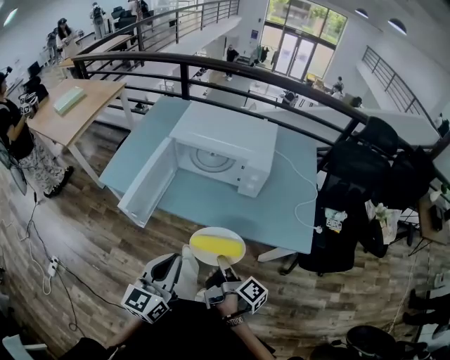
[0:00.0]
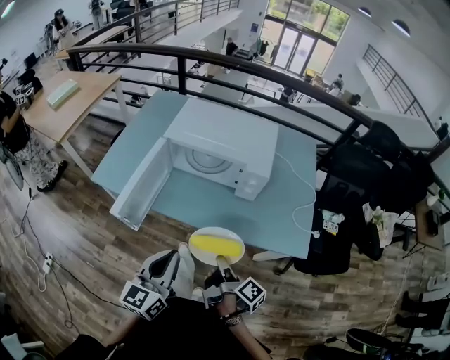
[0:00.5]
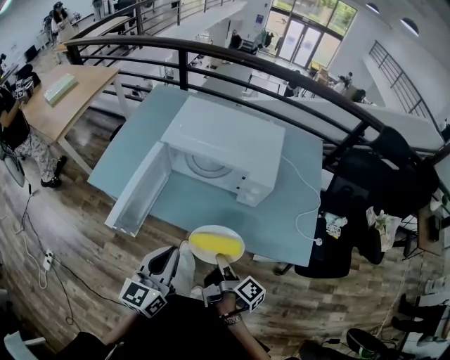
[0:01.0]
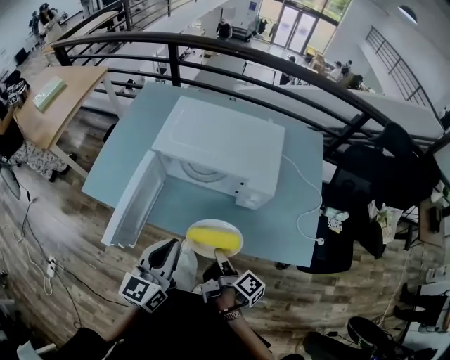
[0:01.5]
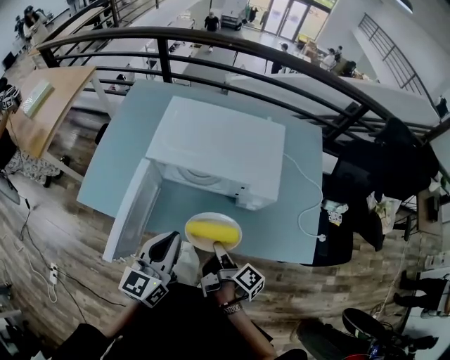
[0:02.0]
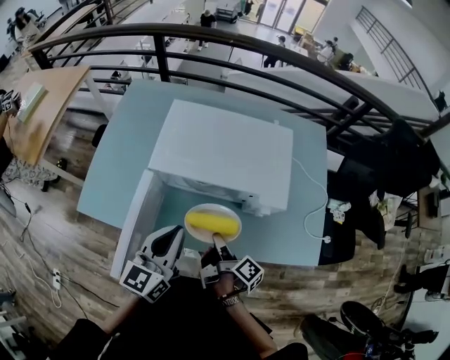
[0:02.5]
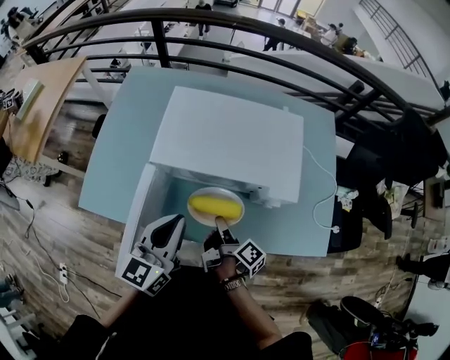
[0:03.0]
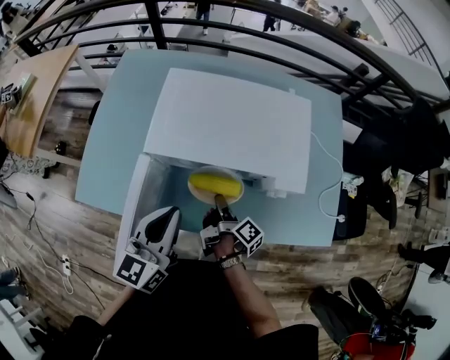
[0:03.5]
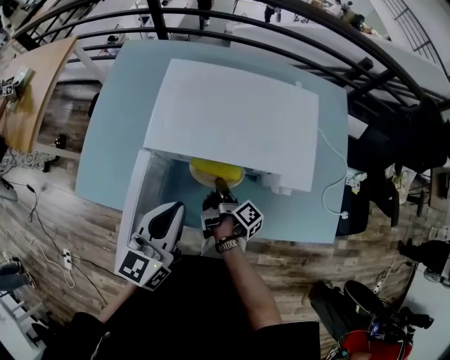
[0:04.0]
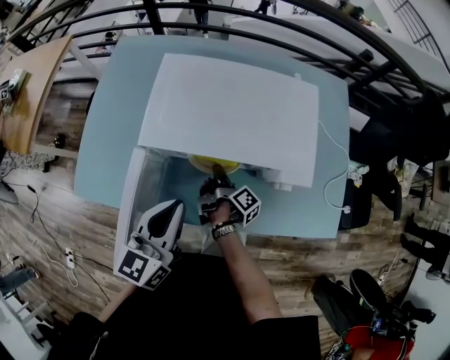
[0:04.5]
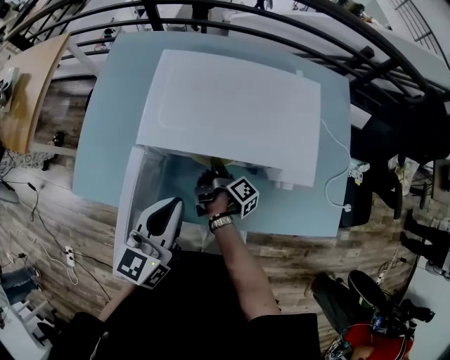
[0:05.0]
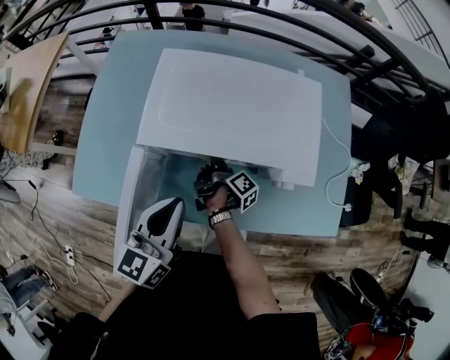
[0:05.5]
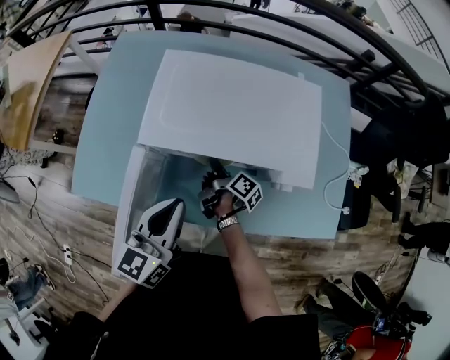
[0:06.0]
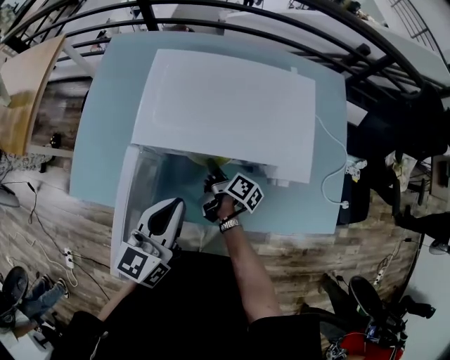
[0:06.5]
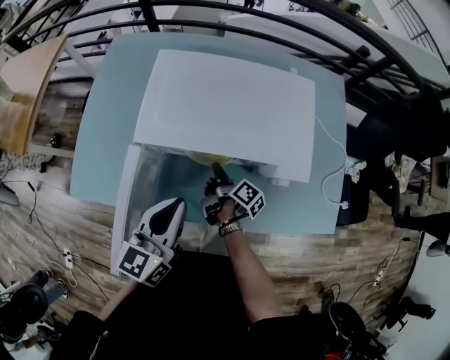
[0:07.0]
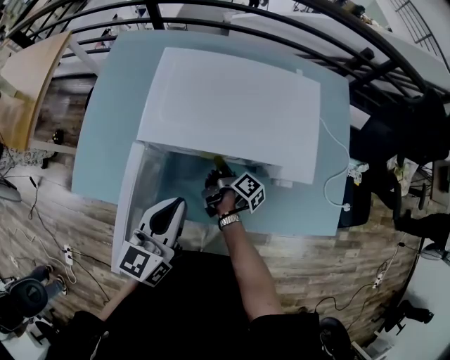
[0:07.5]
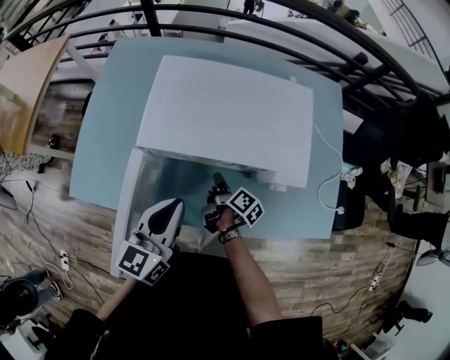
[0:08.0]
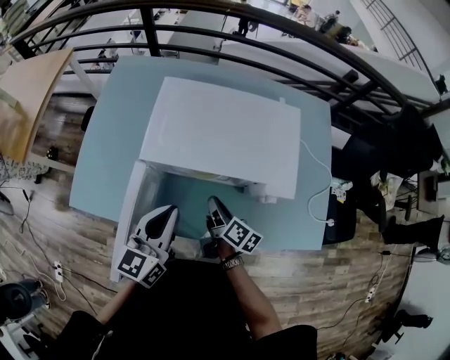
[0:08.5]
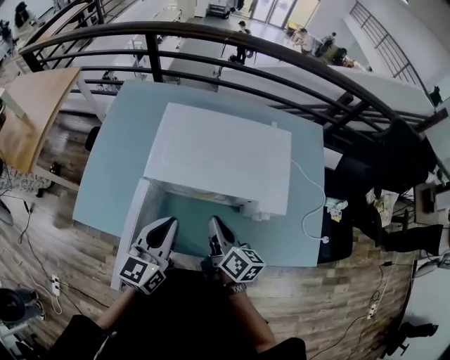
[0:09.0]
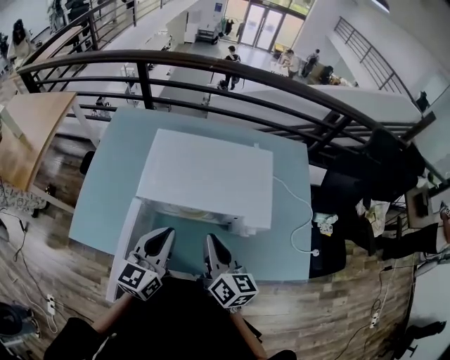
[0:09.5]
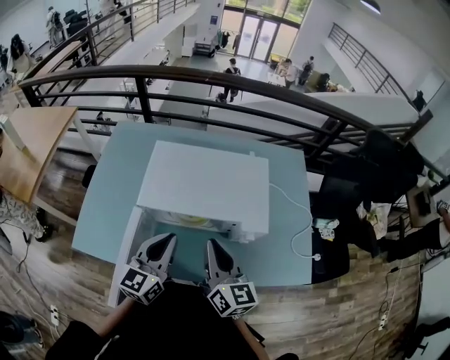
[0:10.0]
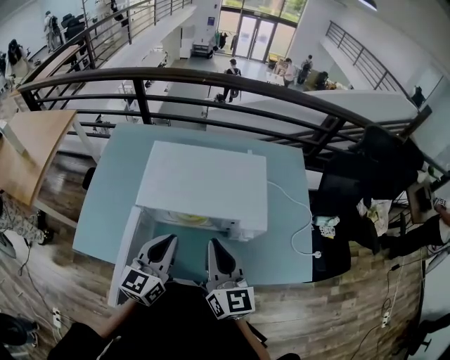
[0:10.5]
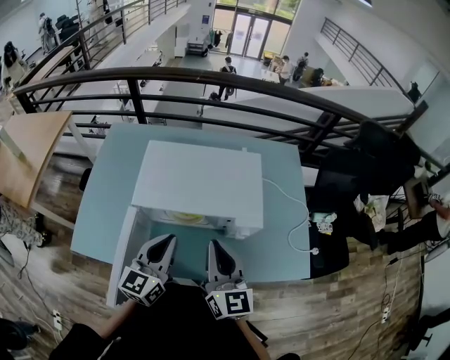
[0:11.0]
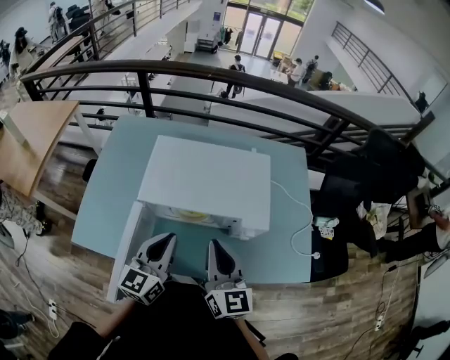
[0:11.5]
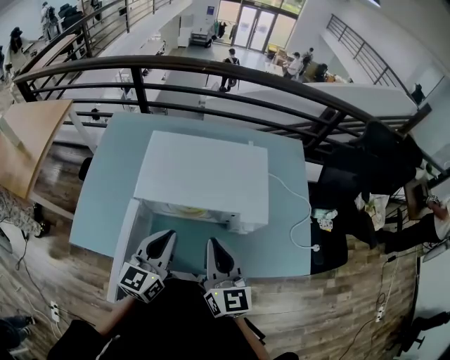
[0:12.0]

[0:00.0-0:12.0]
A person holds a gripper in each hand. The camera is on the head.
0:00.0 to 0:02.0: The left gripper moves approximately 25 cm.
0:02.0 to 0:04.0: The left gripper changes place by about 10 cm.
0:08.0 to 0:10.0: The left gripper heads upward, covering roughly 5 cm.

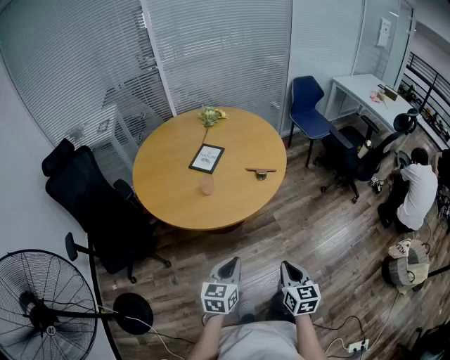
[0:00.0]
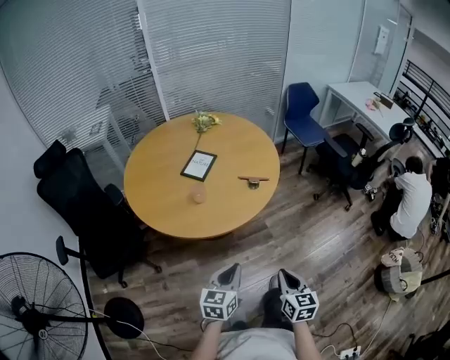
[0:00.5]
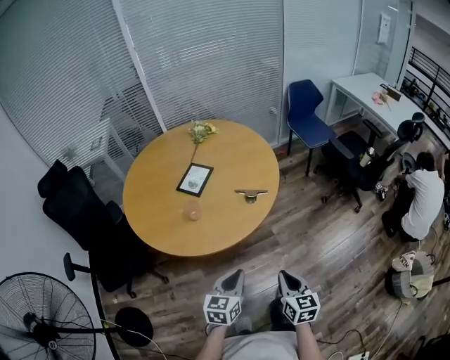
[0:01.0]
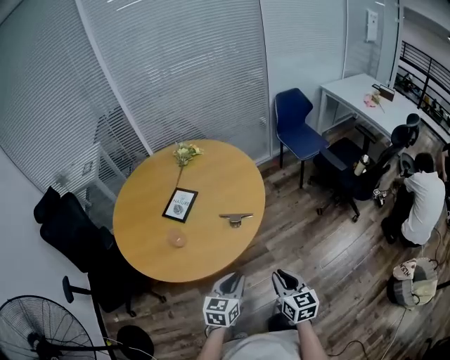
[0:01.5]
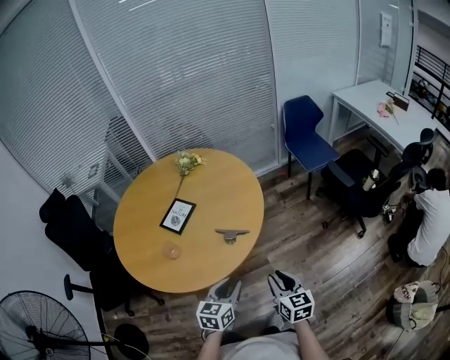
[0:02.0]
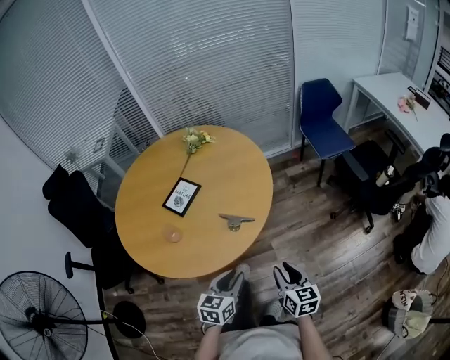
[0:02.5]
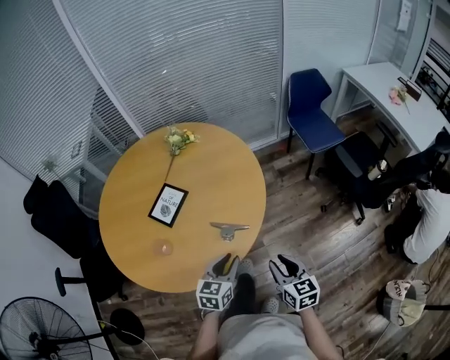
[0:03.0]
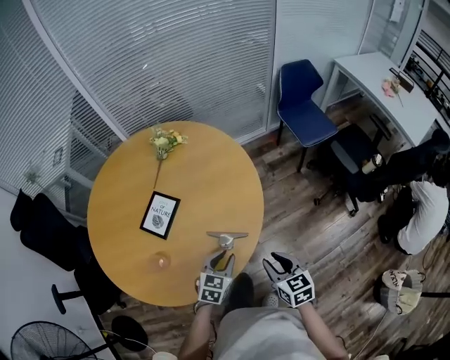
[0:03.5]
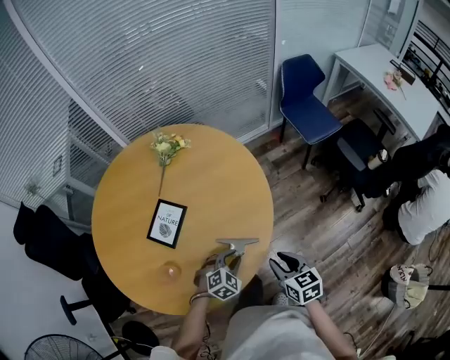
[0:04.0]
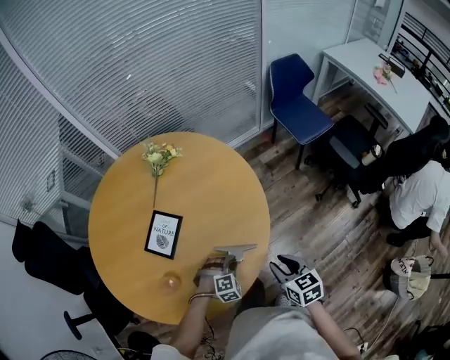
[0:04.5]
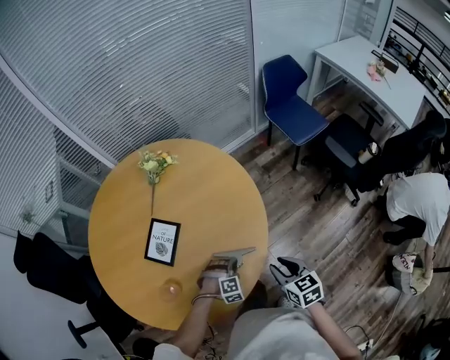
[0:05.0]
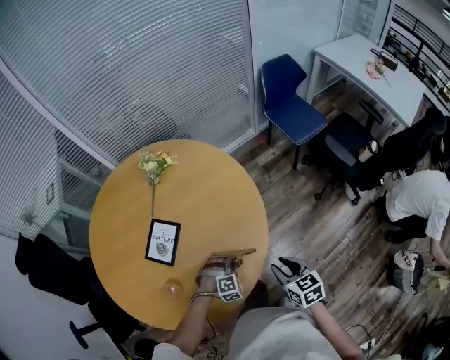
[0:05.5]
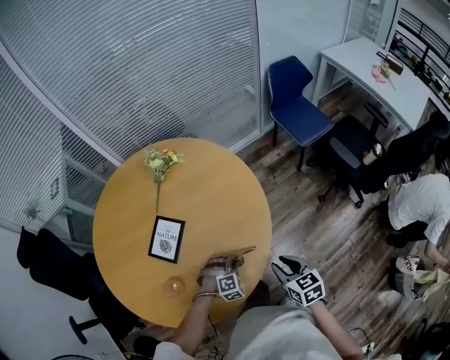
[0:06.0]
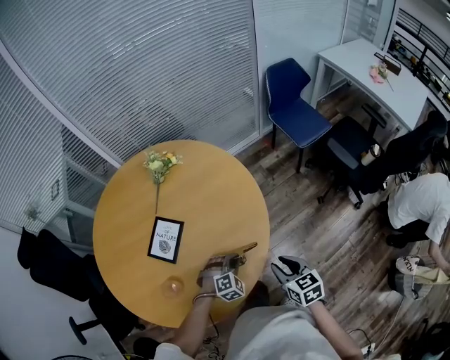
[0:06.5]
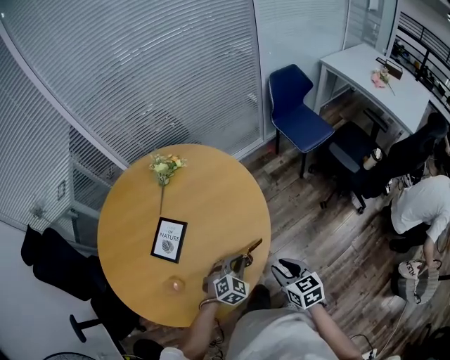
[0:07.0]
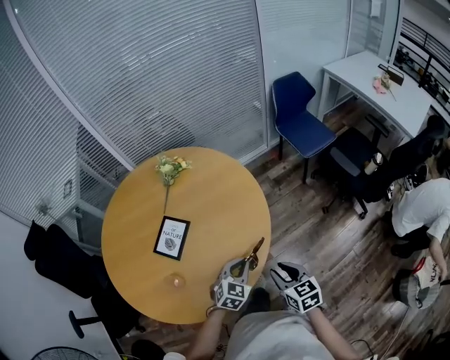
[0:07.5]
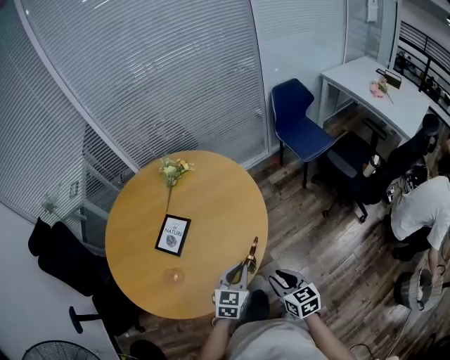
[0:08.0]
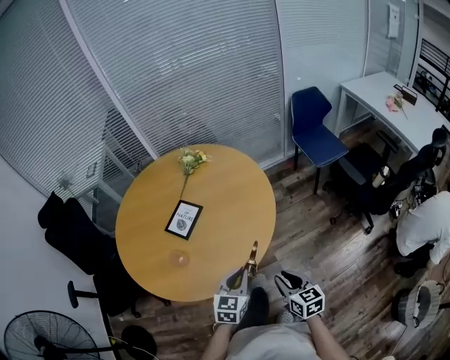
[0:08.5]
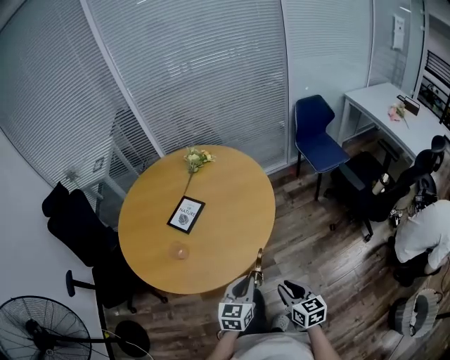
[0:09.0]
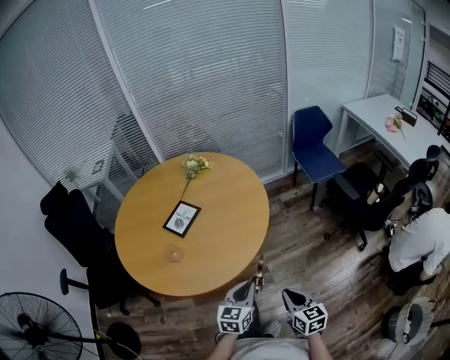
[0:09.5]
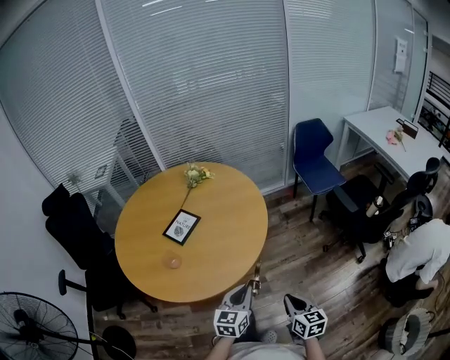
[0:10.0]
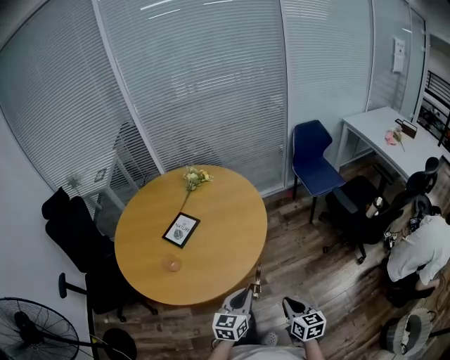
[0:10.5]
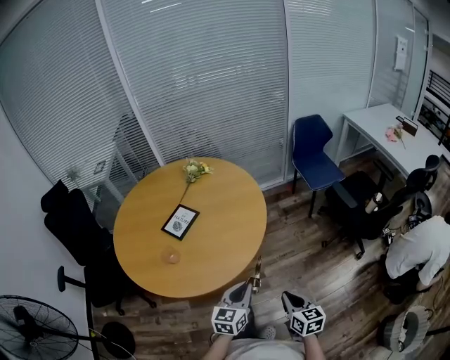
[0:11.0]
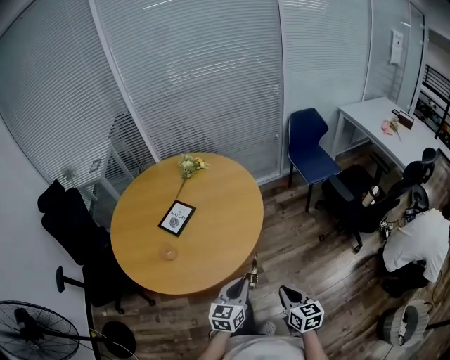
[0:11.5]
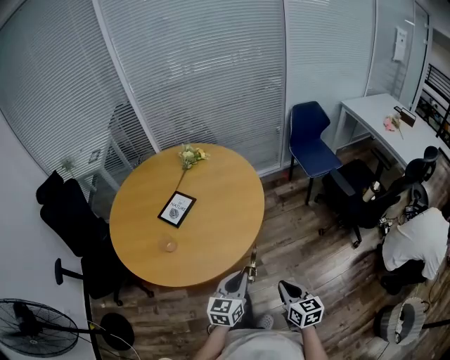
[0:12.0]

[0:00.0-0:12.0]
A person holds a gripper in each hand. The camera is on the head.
0:00.0 to 0:02.0: Both grippers move forward and to the right, about 35 cm. The right gripper opens up. Meanwhile the left gripper opens its fingers.
0:02.0 to 0:04.0: The right gripper shifts roughly 20 cm forward. The left gripper shifts approximately 30 cm forward and downward, and twists roughly 50 degrees clockwise, seen from behind.
0:04.0 to 0:06.0: The left gripper ends up about 5 cm from where it was, and turns by about 30 degrees.
0:06.0 to 0:08.0: The left gripper heads upward and backward, covering some 20 cm, and rotates around the line of its fingers by approximately 60 degrees, counterclockwise from behind, while the right gripper travels backward by some 10 cm.
0:08.0 to 0:10.0: The right gripper shifts approximately 15 cm backward and to the right, and closes, while the left gripper travels backward by roughly 15 cm, and changes its angle by about 20 degrees.
0:10.0 to 0:12.0: The grippers make only small movements.

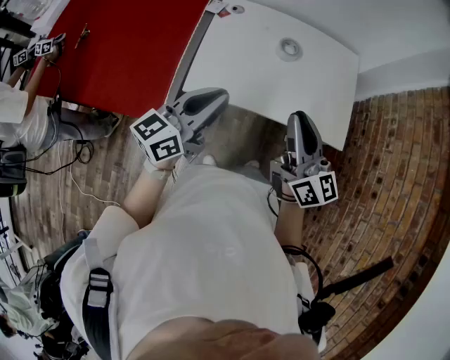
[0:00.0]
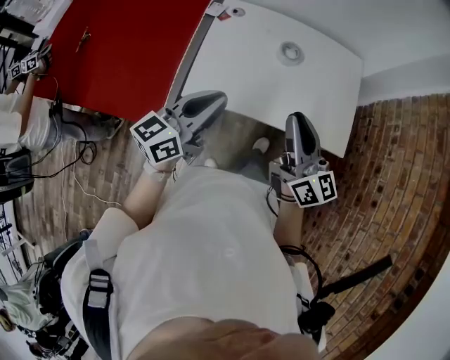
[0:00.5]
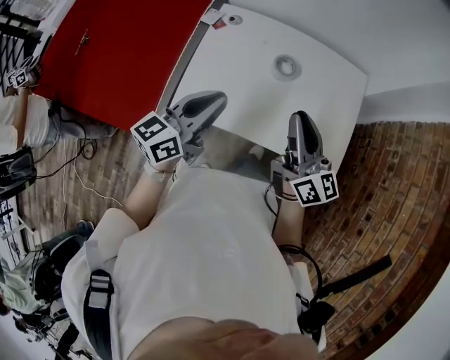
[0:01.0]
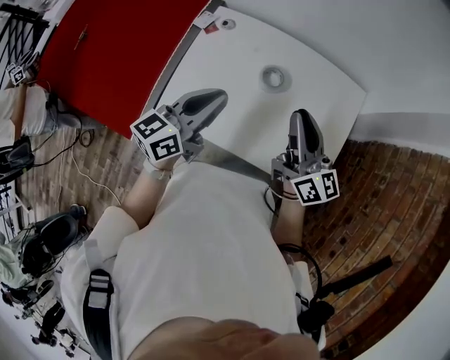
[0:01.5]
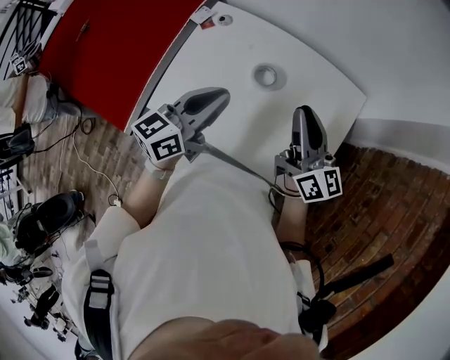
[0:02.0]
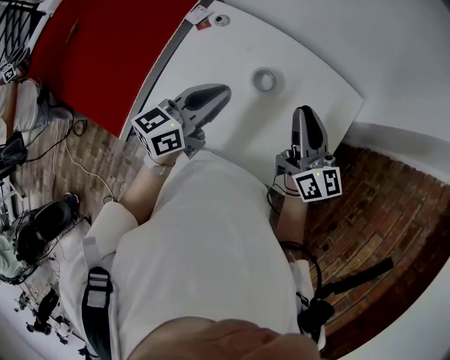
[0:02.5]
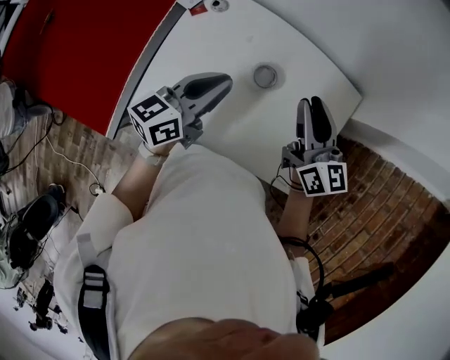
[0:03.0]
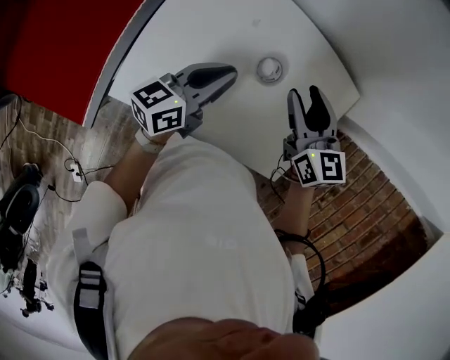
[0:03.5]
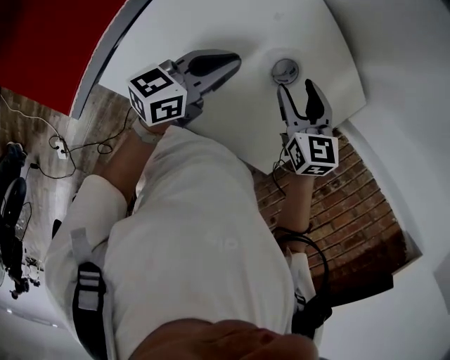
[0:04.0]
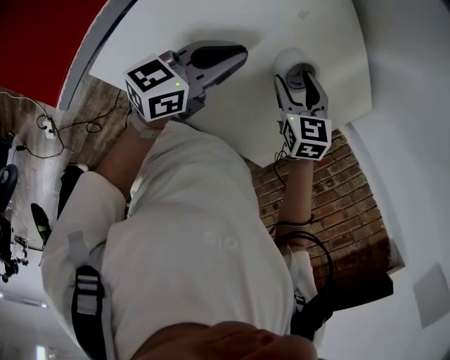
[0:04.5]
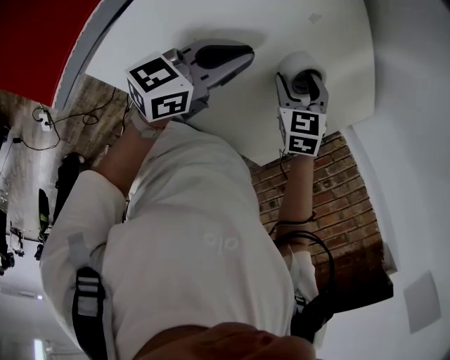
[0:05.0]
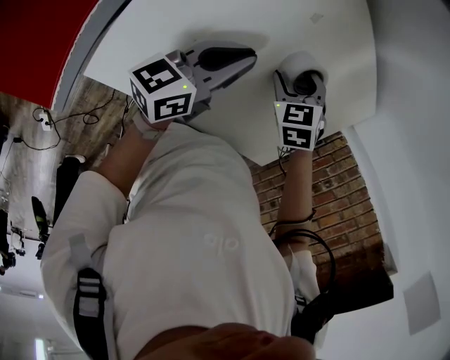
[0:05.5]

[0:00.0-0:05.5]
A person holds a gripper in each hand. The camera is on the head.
0:00.0 to 0:02.0: Both grippers travel together forward and to the right, approximately 35 cm.
0:02.0 to 0:03.5: The left gripper shifts approximately 25 cm downward, forward and to the left, and swivels approximately 20 degrees, while the right gripper shifts some 25 cm forward, downward and to the left, tilts its fingers about 40 degrees downward, and opens its fingers.
0:03.5 to 0:05.5: The left gripper is displaced downward by roughly 15 cm, while the right gripper shifts approximately 25 cm downward, and tilts its fingers about 50 degrees downward.
